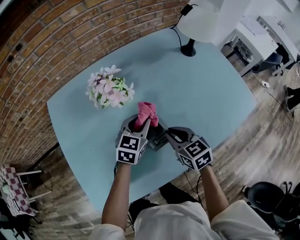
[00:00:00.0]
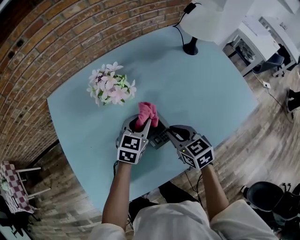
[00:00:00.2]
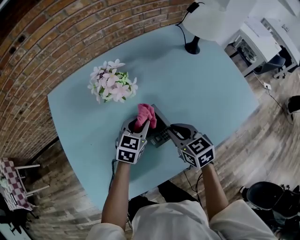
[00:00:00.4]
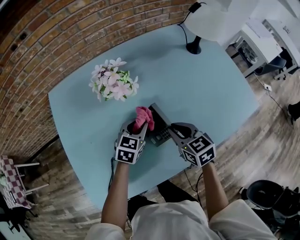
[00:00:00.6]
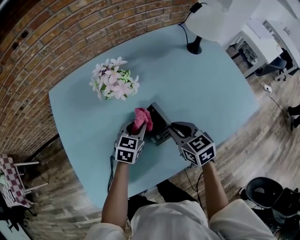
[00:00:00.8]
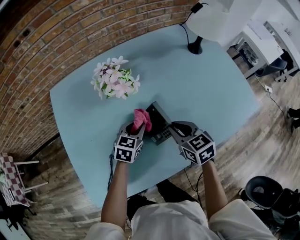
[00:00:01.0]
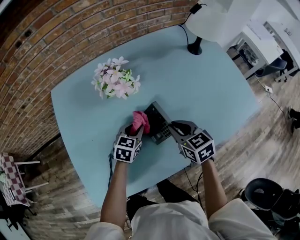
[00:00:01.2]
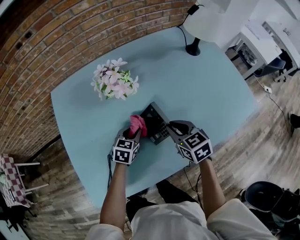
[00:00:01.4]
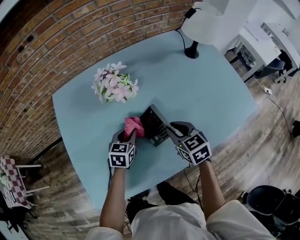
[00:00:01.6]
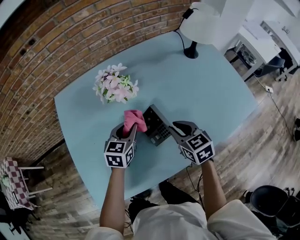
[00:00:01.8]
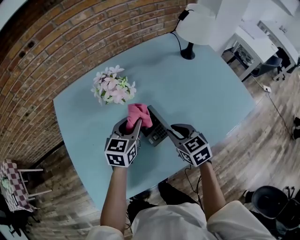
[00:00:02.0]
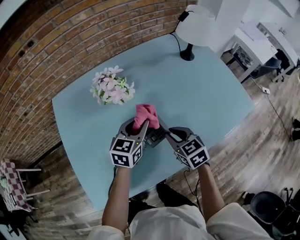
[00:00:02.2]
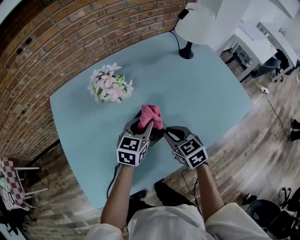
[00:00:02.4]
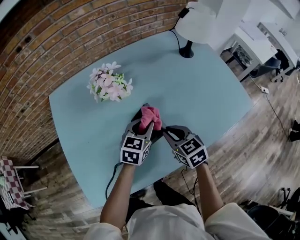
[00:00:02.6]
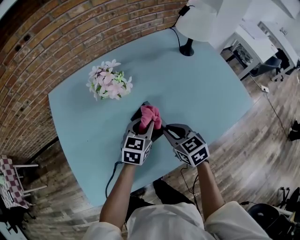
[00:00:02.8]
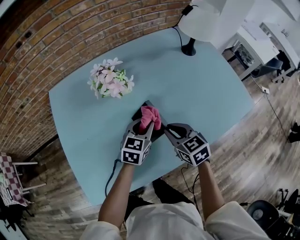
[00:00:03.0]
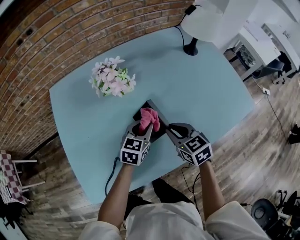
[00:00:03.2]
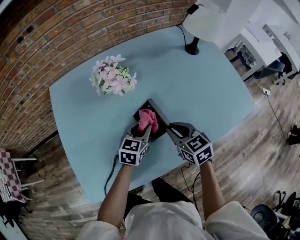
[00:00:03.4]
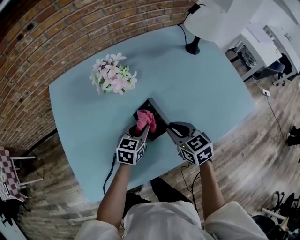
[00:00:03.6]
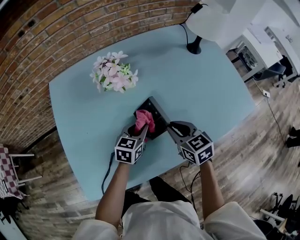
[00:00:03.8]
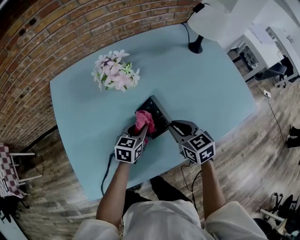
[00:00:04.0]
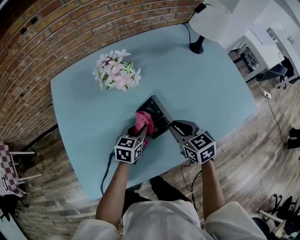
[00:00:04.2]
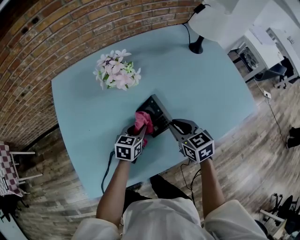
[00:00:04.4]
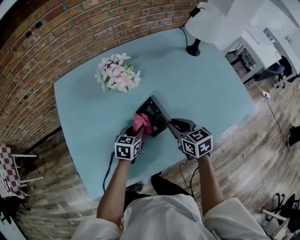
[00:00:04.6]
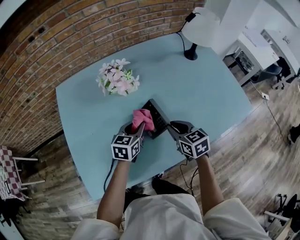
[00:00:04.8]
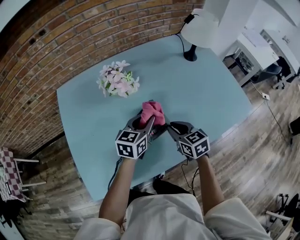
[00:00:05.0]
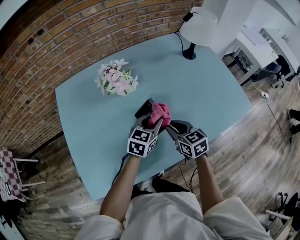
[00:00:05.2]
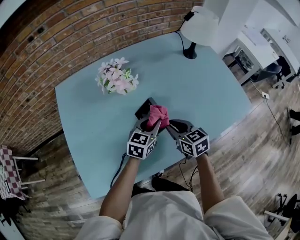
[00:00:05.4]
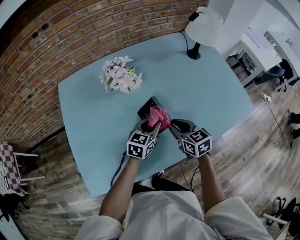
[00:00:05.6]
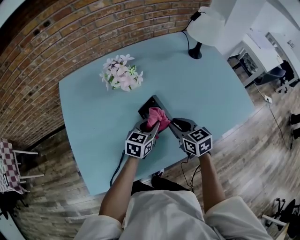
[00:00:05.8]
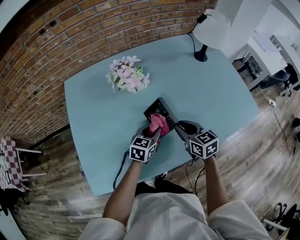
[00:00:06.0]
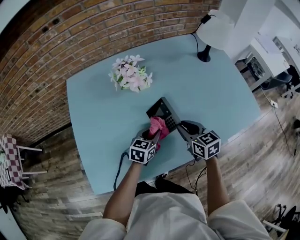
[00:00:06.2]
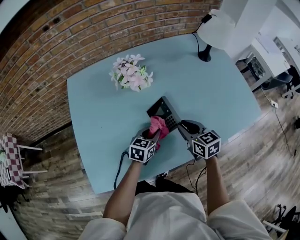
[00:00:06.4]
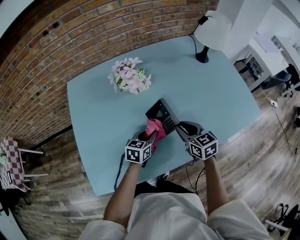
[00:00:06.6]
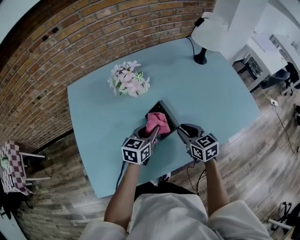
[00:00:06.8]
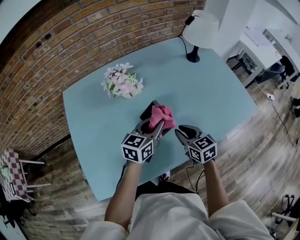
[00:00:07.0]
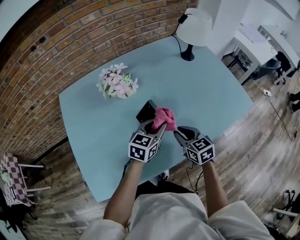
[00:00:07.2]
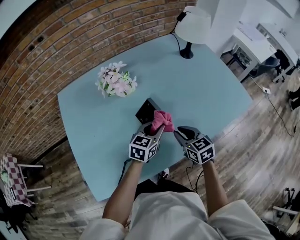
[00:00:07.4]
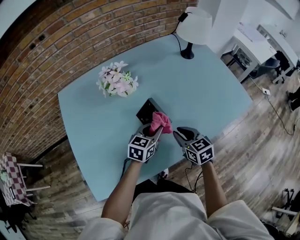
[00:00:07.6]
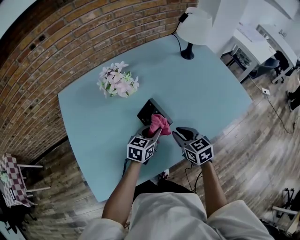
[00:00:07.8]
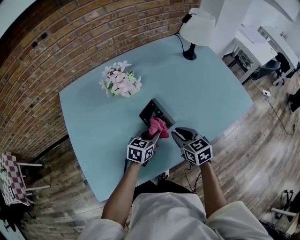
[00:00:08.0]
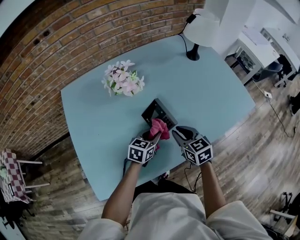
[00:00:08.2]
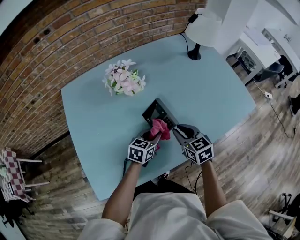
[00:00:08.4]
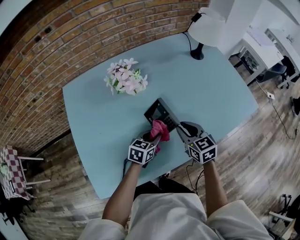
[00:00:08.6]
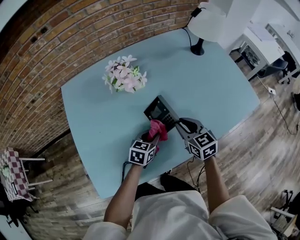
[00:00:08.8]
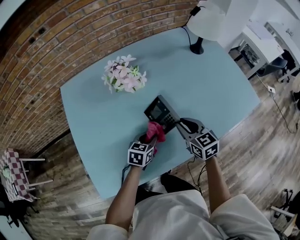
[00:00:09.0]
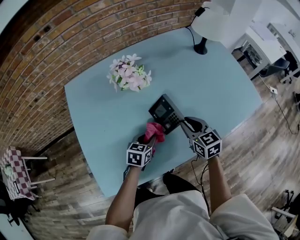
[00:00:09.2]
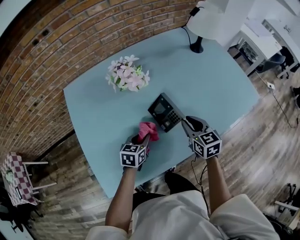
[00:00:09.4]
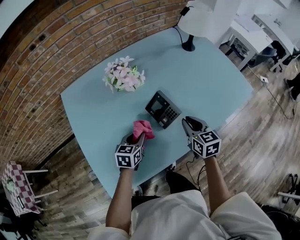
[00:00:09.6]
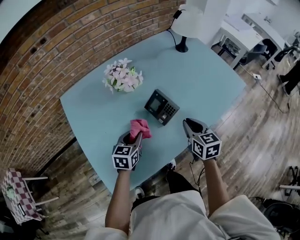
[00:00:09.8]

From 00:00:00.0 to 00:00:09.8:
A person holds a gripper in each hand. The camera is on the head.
From 00:00:00.0 to 00:00:01.4: The left gripper heads downward, to the left and backward, covering some 15 cm.
From 00:00:01.4 to 00:00:02.8: The left gripper travels to the right and upward by roughly 10 cm.
From 00:00:02.8 to 00:00:04.2: The left gripper travels downward and to the left by approximately 10 cm.
From 00:00:04.2 to 00:00:05.6: The left gripper is displaced to the right and upward by roughly 10 cm.
From 00:00:05.6 to 00:00:07.0: The left gripper is displaced upward by roughly 5 cm.
From 00:00:07.0 to 00:00:08.4: The left gripper travels downward by approximately 10 cm.
From 00:00:08.4 to 00:00:09.8: The right gripper is displaced backward and upward by roughly 10 cm, and changes its angle by some 20 degrees; the left gripper shifts some 15 cm to the left, upward and backward.

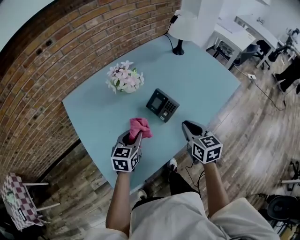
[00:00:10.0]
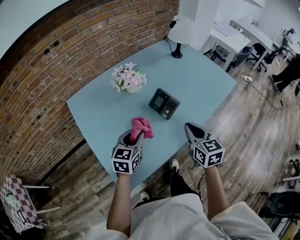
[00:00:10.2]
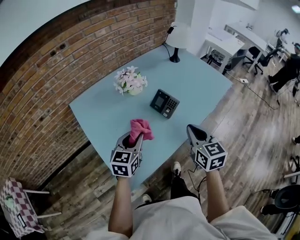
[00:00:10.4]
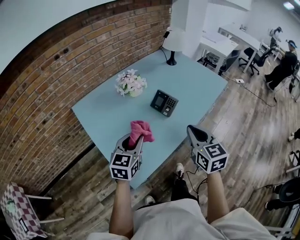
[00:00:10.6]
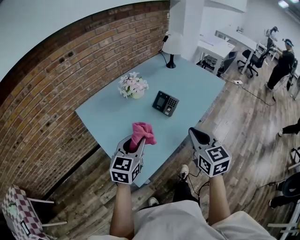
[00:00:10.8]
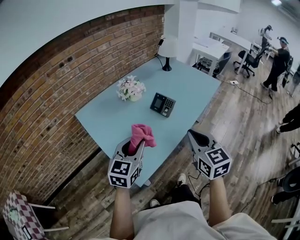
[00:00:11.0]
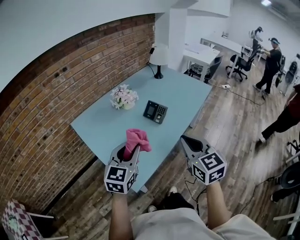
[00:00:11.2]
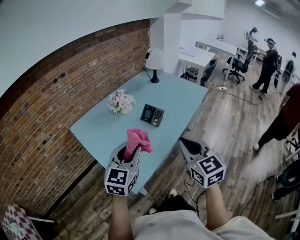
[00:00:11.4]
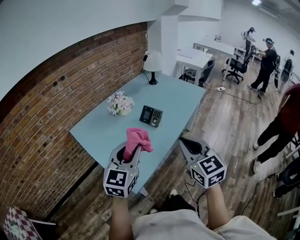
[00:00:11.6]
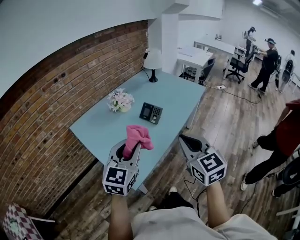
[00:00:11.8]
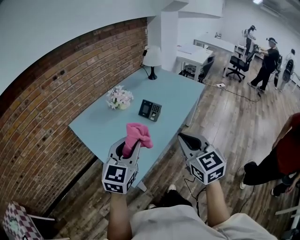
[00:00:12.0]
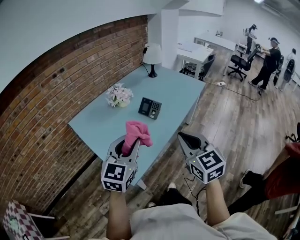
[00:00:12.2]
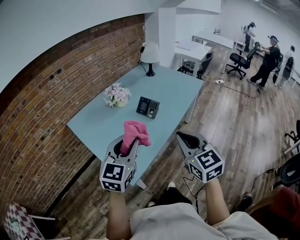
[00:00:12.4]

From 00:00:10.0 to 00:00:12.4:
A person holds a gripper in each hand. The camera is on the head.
From 00:00:10.0 to 00:00:11.2: Both grippers move backward and upward, roughly 30 cm. The right gripper rotates approximately 20 degrees. The left gripper rotates approximately 30 degrees.
From 00:00:11.2 to 00:00:12.4: The left gripper shifts by some 5 cm.

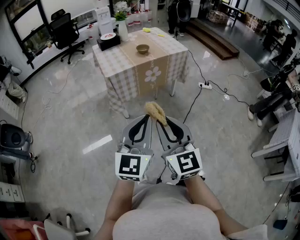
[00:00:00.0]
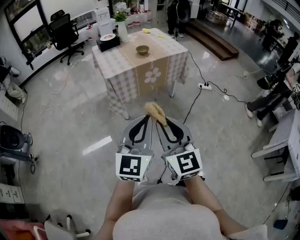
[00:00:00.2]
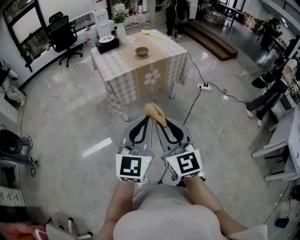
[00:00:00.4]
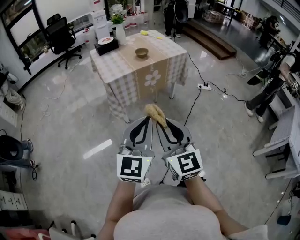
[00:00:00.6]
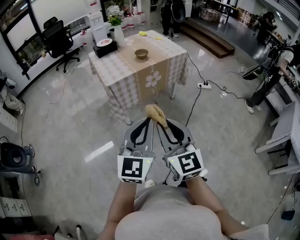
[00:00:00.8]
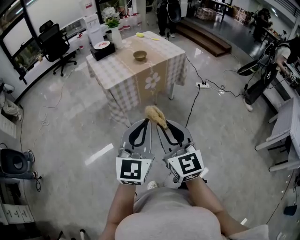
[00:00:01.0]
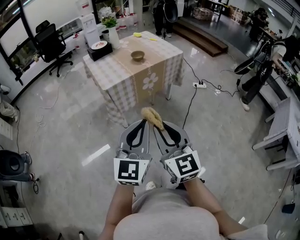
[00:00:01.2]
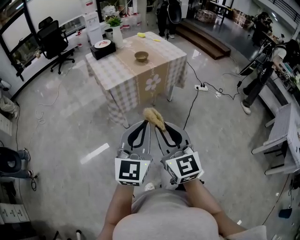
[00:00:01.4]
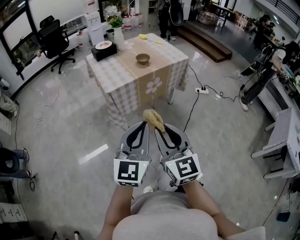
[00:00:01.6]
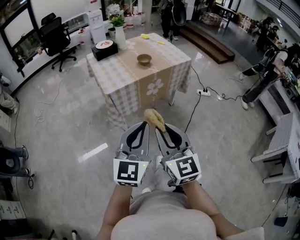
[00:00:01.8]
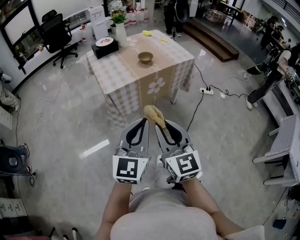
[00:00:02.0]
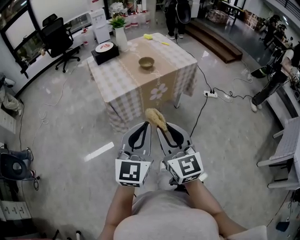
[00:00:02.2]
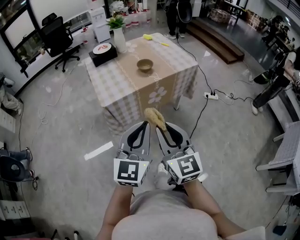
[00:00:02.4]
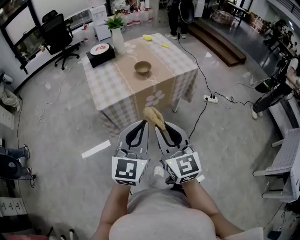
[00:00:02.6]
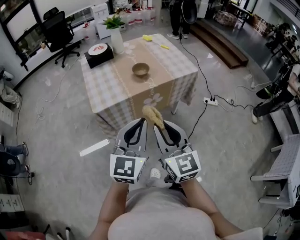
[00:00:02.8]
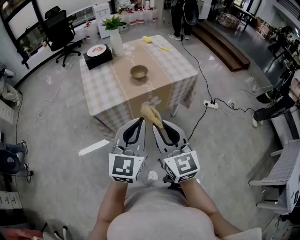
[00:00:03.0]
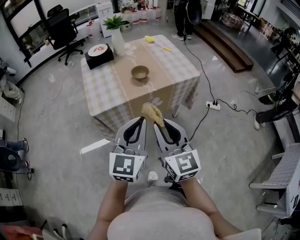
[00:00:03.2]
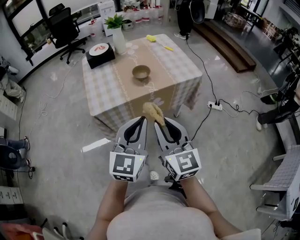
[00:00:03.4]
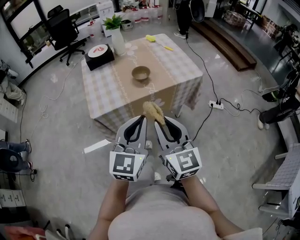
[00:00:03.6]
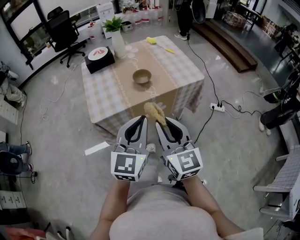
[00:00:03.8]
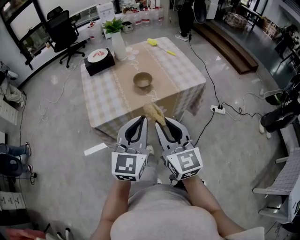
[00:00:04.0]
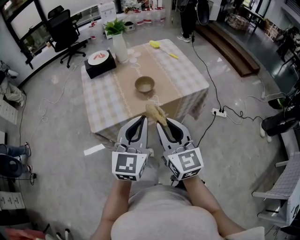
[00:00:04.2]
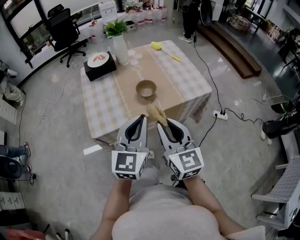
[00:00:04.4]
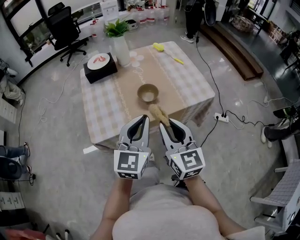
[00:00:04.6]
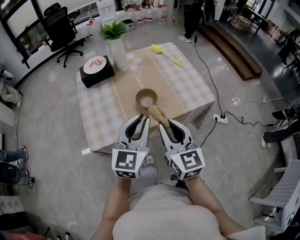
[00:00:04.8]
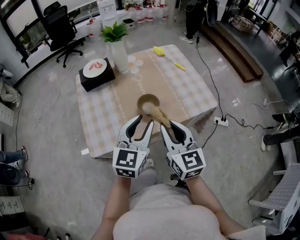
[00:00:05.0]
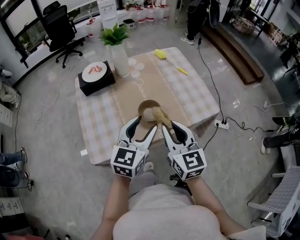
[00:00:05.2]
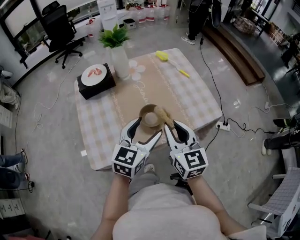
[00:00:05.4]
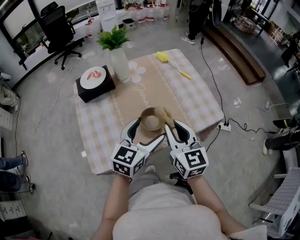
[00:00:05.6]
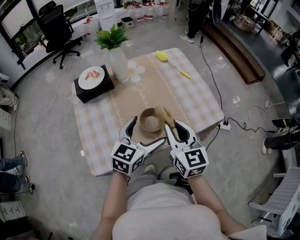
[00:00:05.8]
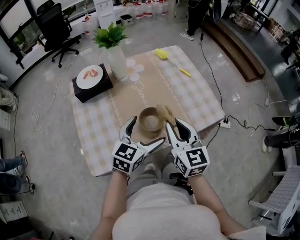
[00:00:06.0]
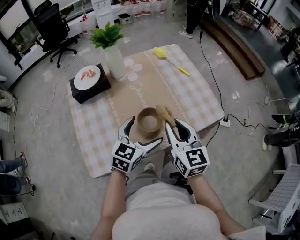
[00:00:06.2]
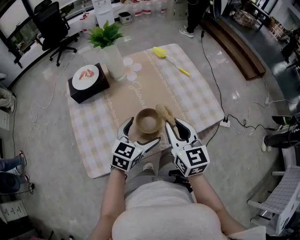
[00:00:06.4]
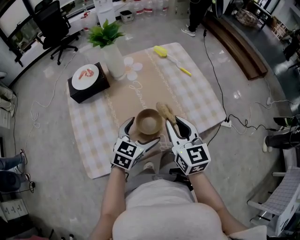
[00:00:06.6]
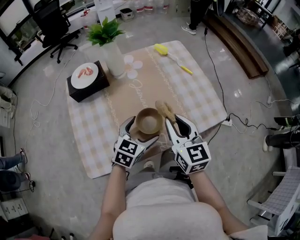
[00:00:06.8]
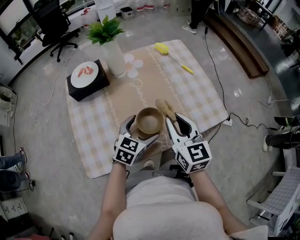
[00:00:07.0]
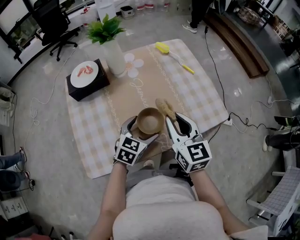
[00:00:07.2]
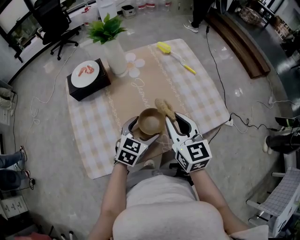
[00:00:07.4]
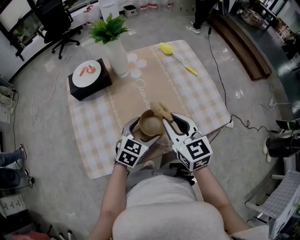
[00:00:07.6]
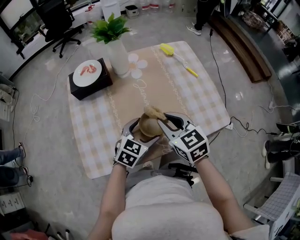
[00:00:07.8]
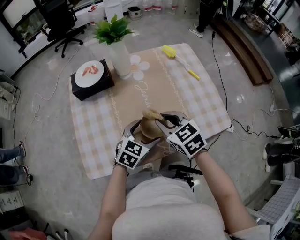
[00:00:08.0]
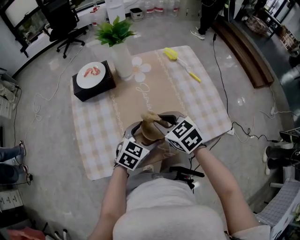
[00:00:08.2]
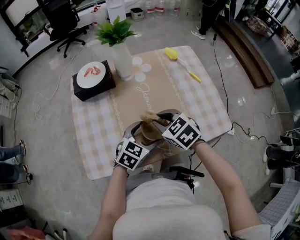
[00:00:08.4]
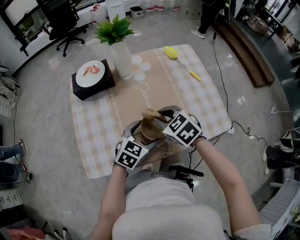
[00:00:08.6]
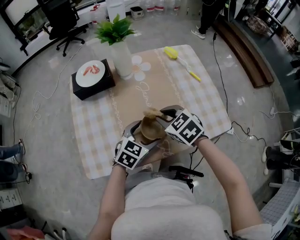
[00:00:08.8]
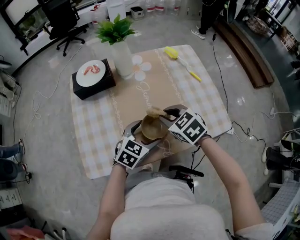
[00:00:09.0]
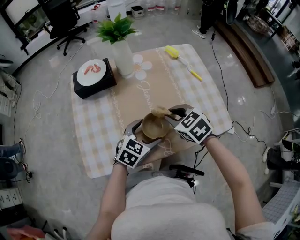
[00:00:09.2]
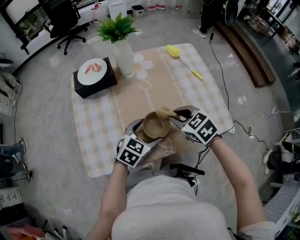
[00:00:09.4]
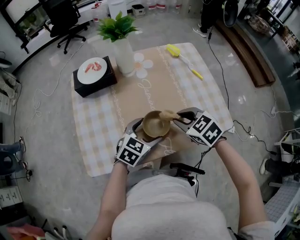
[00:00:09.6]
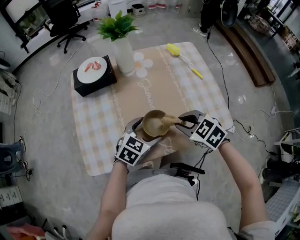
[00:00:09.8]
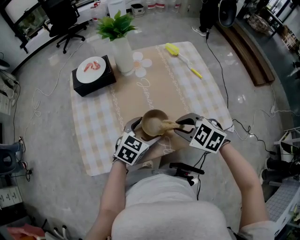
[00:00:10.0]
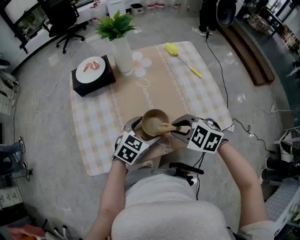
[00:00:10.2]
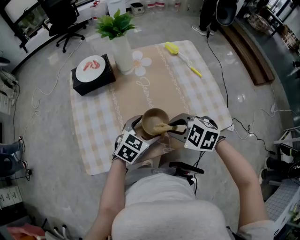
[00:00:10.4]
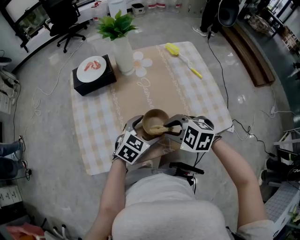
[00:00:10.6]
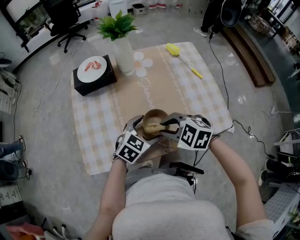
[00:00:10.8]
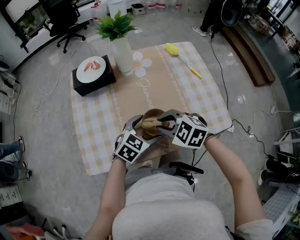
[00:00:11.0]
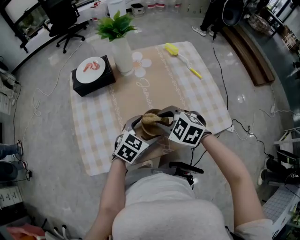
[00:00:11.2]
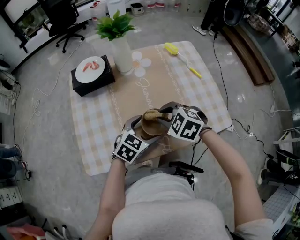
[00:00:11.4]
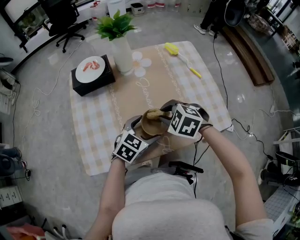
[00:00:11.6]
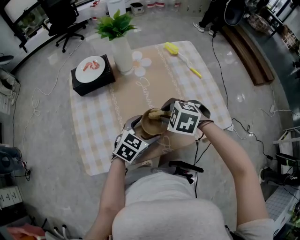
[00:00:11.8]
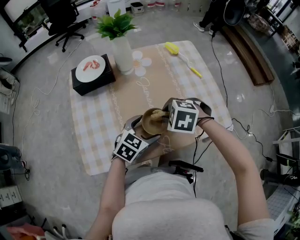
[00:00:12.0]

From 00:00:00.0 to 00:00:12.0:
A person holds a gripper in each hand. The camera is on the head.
From 00:00:00.0 to 00:00:01.6: The grippers both shift forward and to the left by about 10 cm.
From 00:00:01.6 to 00:00:03.0: The left gripper is displaced forward by approximately 25 cm; the right gripper travels forward and to the right by approximately 25 cm.
From 00:00:03.0 to 00:00:04.4: The grippers both shift forward by roughly 15 cm.
From 00:00:04.4 to 00:00:06.0: The left gripper travels forward and downward by approximately 25 cm, rotates roughly 30 degrees, and opens. Meanwhile the right gripper heads forward, covering roughly 20 cm.
From 00:00:06.0 to 00:00:07.6: The right gripper shifts by roughly 5 cm, while the left gripper heads downward, covering about 10 cm.
From 00:00:07.6 to 00:00:09.0: The right gripper moves downward, about 5 cm, and changes its angle by some 40 degrees.
From 00:00:09.0 to 00:00:10.4: The right gripper goes about 10 cm backward, and changes its angle by some 30 degrees.
From 00:00:10.4 to 00:00:12.0: The right gripper travels forward by about 5 cm.
